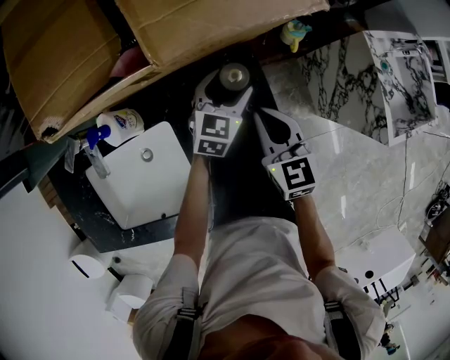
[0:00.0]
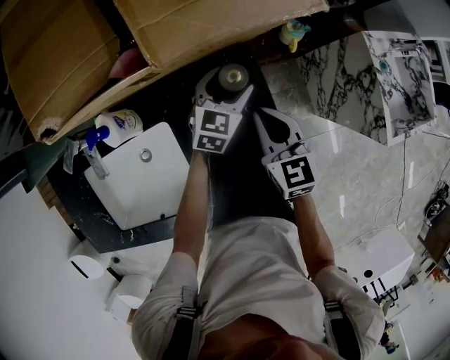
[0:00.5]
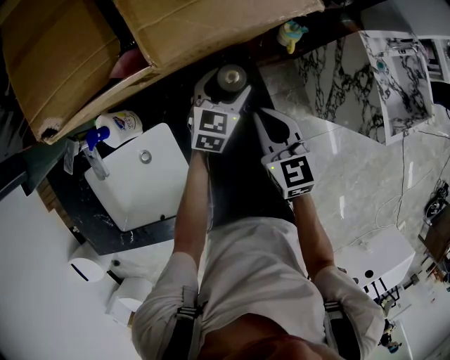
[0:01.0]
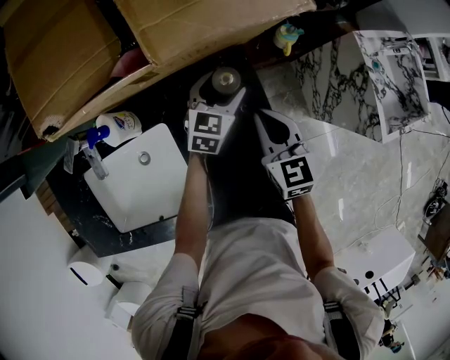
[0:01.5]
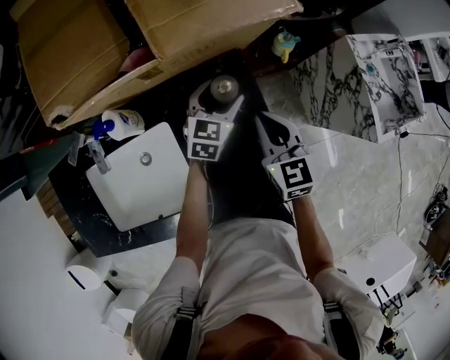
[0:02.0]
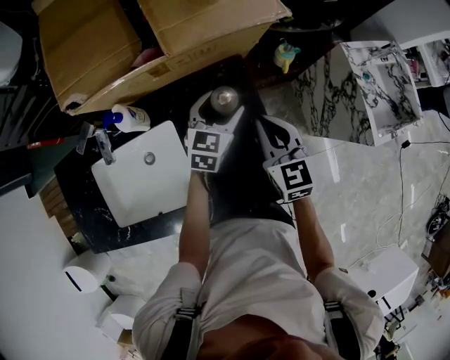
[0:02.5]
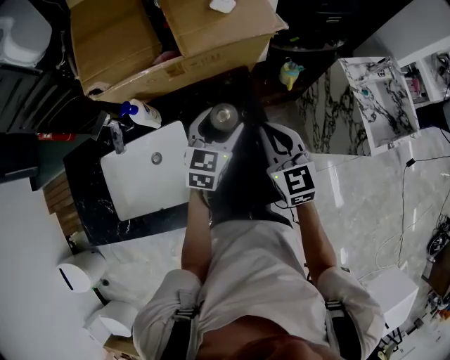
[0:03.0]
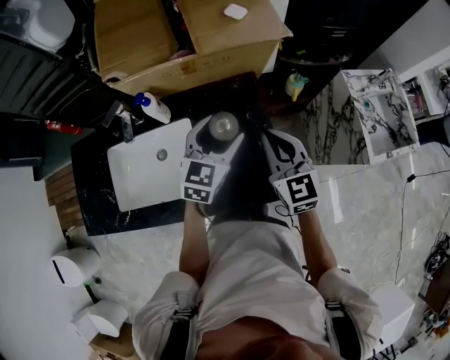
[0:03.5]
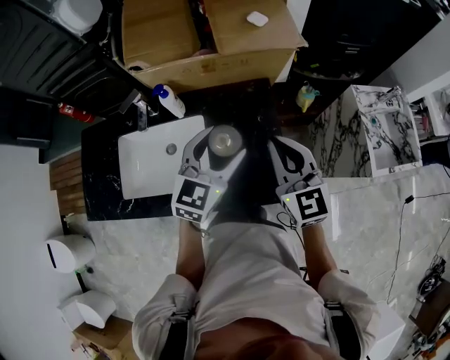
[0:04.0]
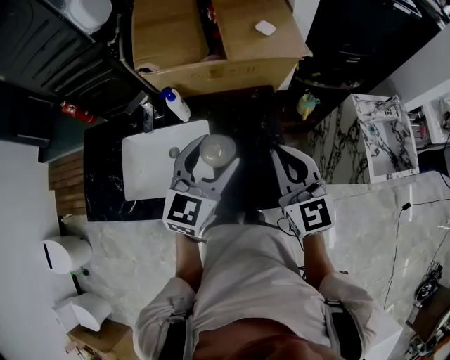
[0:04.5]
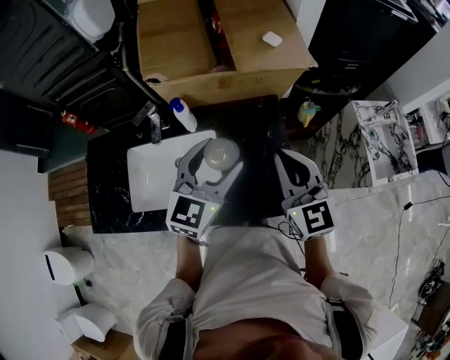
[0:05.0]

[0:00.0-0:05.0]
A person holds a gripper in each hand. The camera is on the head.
0.0 to 2.5 s: The right gripper heads upward, covering approximately 5 cm, while the left gripper shifts some 10 cm upward and backward.
2.5 to 5.0 s: The left gripper heads upward, backward and to the left, covering roughly 30 cm. Meanwhile the right gripper shifts some 20 cm upward and backward.

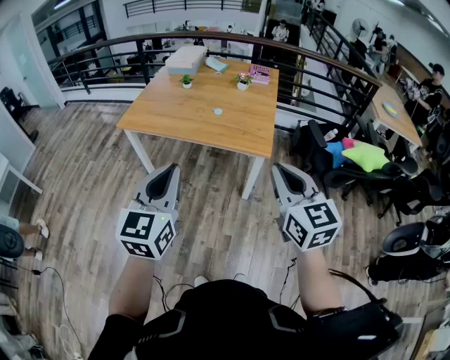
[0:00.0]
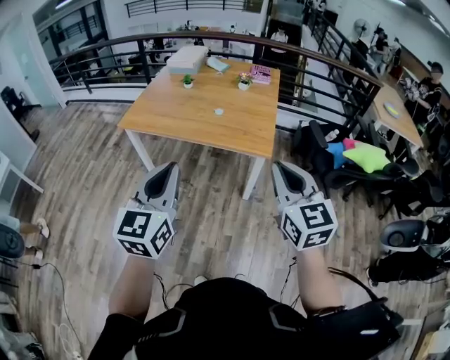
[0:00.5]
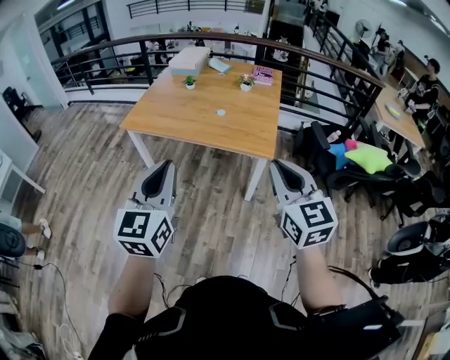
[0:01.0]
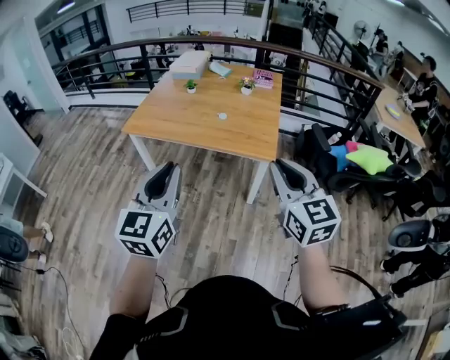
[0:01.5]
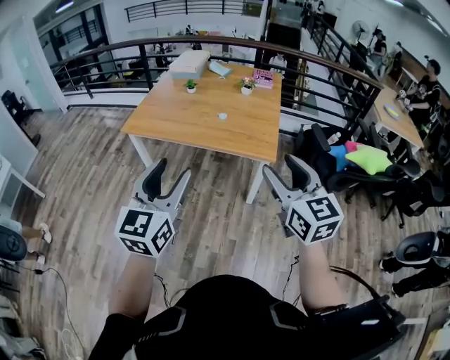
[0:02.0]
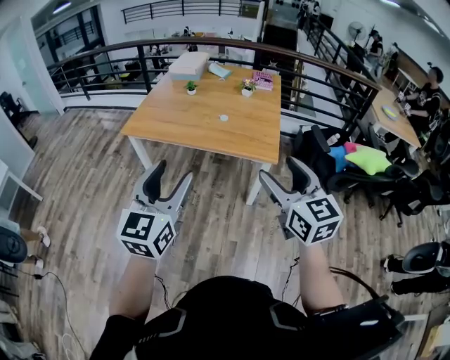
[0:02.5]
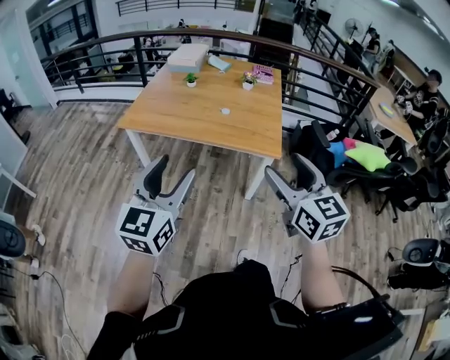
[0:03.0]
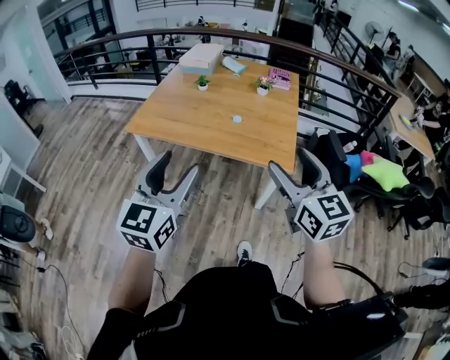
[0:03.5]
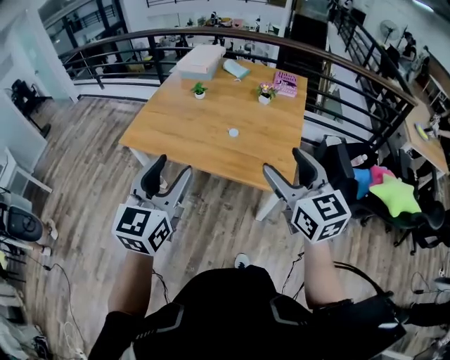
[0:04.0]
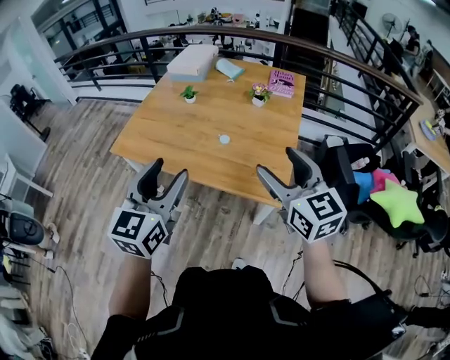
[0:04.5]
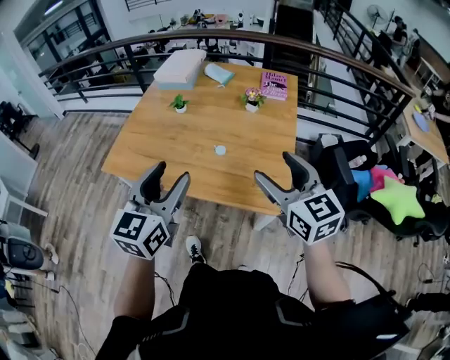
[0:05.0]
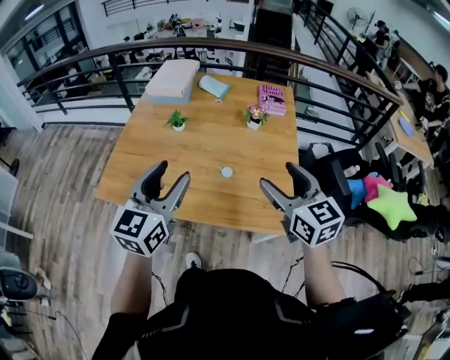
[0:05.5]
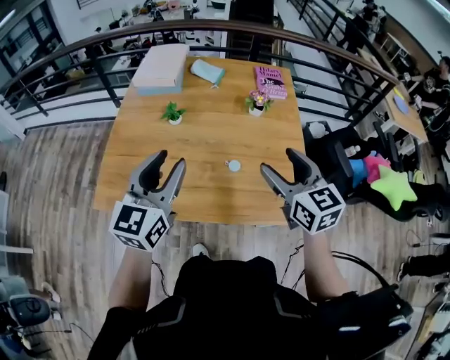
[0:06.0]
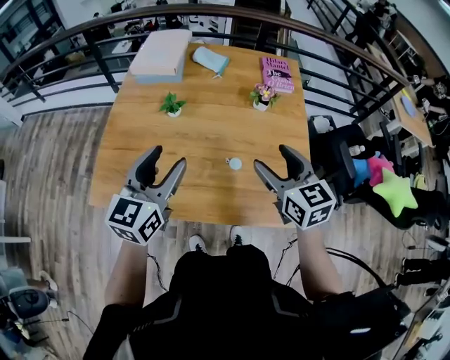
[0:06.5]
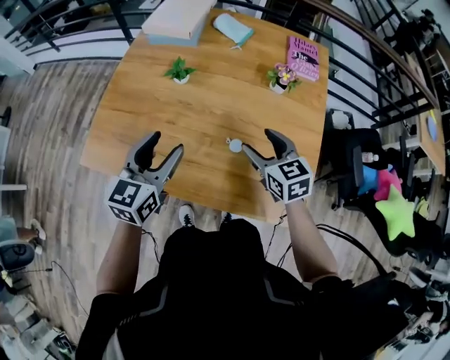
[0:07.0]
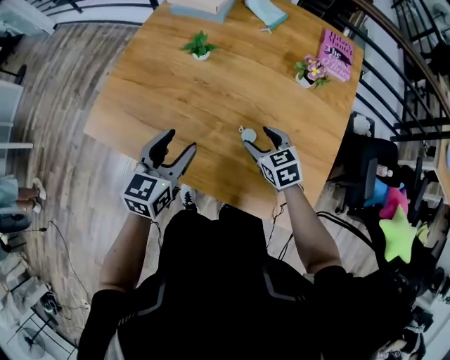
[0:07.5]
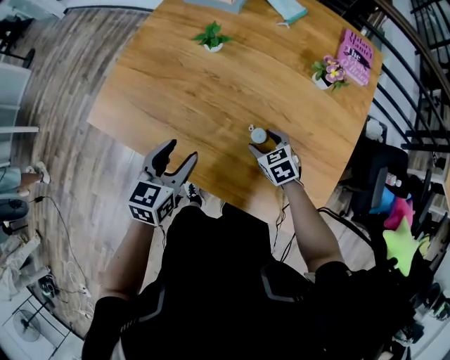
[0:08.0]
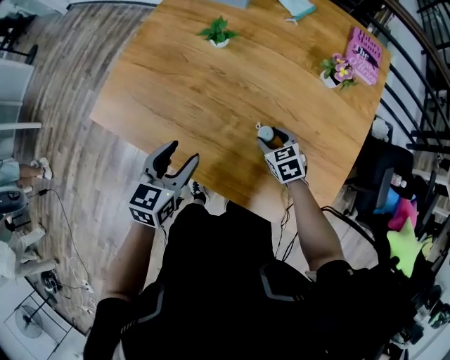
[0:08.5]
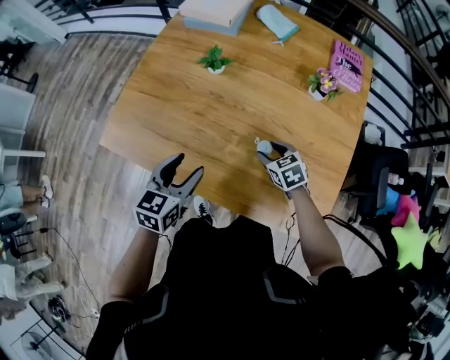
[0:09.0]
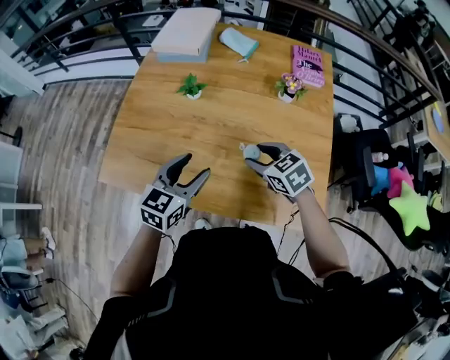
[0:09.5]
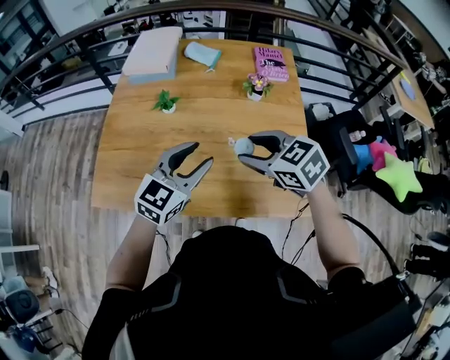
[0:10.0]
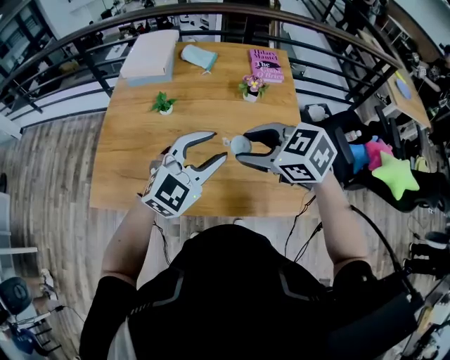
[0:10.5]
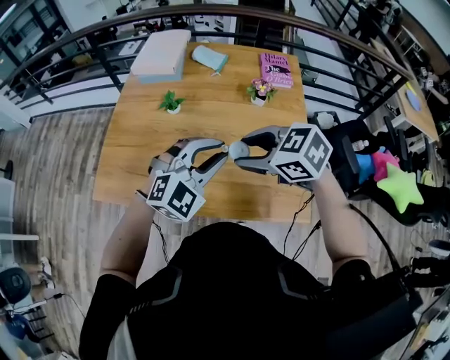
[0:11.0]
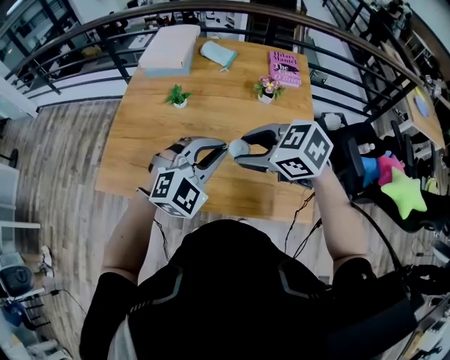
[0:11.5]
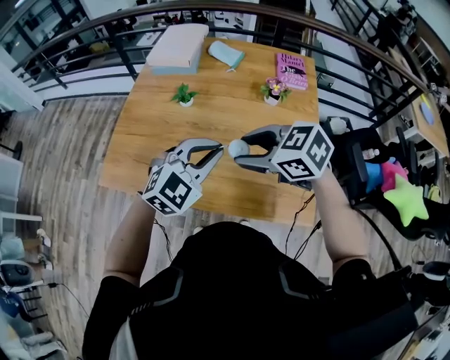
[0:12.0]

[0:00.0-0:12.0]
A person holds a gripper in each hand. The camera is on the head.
0.0 to 2.0 s: The right gripper opens its fingers. Meanwhile the left gripper opens its fingers.
2.0 to 4.0 s: Both grippers travel together forward, about 25 cm.
4.0 to 6.0 s: Both grippers travel together forward, approximately 30 cm.
6.0 to 8.0 s: The left gripper goes about 25 cm downward, and changes its angle by about 30 degrees. Meanwhile the right gripper shifts roughly 35 cm downward, and tilts its fingers approximately 40 degrees downward.
8.0 to 10.0 s: The right gripper goes approximately 30 cm upward. Meanwhile the left gripper goes about 15 cm upward and to the right, and changes its angle by approximately 50 degrees.
10.0 to 12.0 s: The left gripper changes its angle by some 30 degrees, and closes up, while the right gripper changes place by approximately 5 cm.

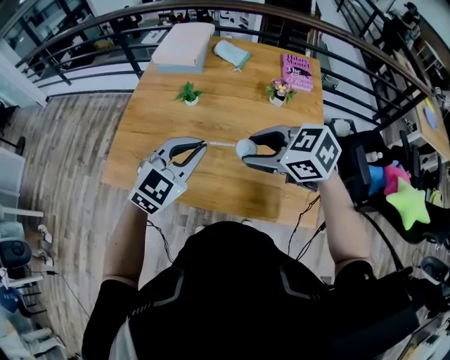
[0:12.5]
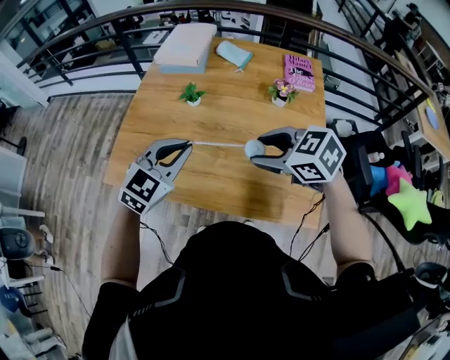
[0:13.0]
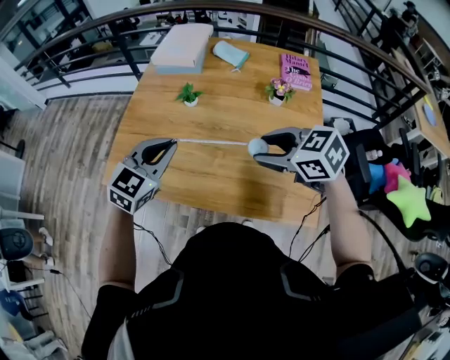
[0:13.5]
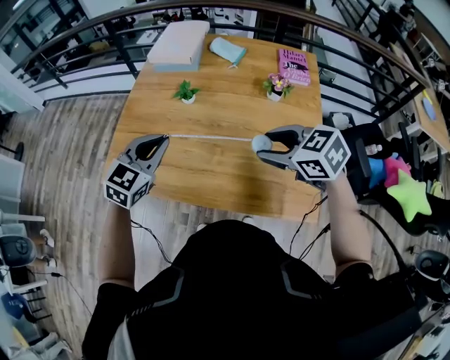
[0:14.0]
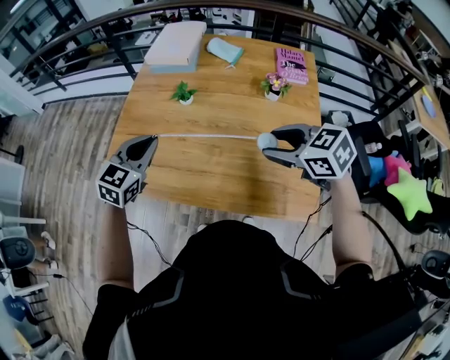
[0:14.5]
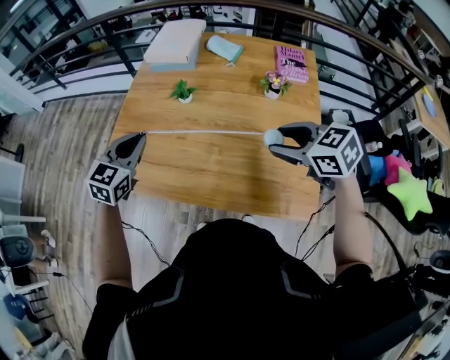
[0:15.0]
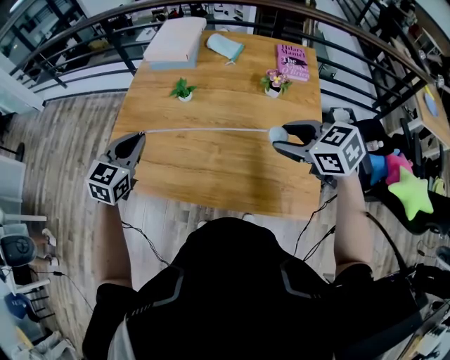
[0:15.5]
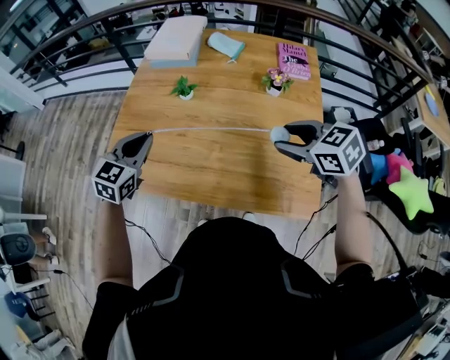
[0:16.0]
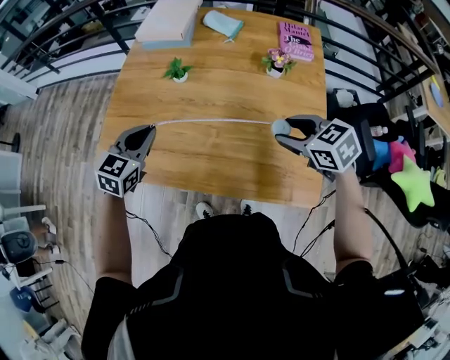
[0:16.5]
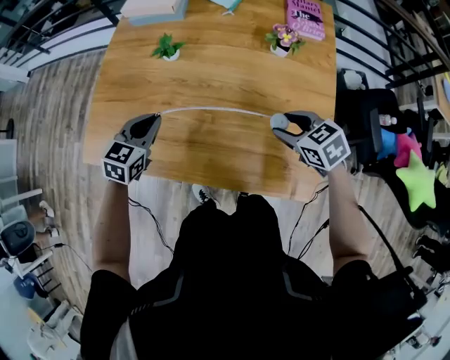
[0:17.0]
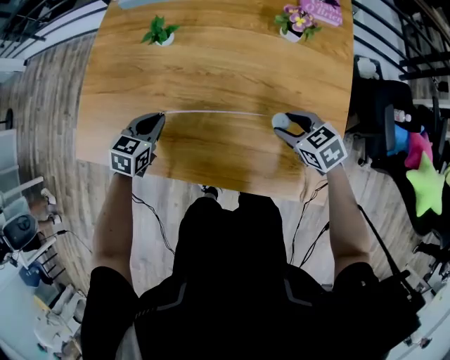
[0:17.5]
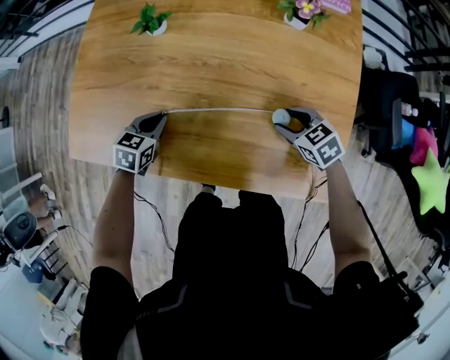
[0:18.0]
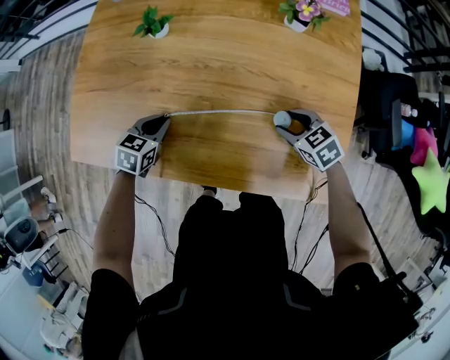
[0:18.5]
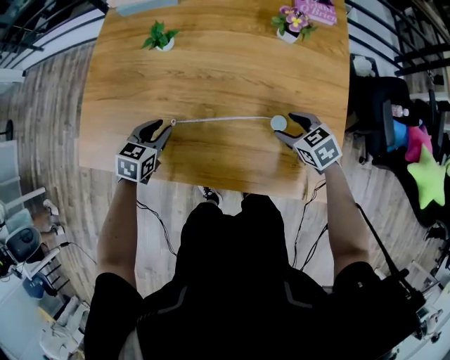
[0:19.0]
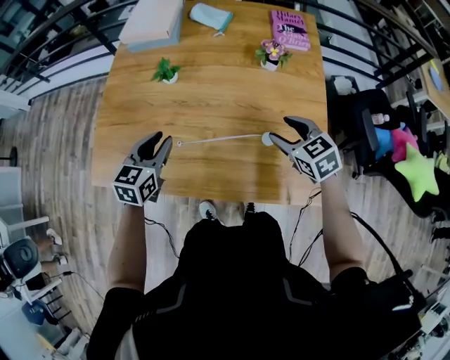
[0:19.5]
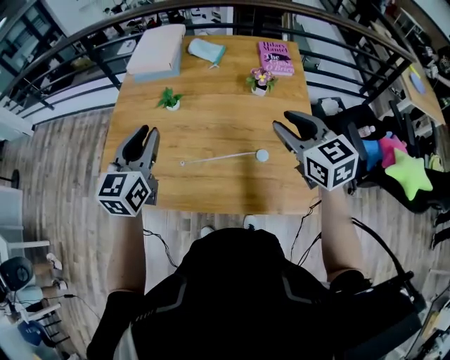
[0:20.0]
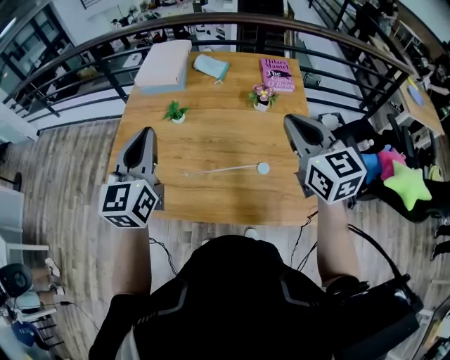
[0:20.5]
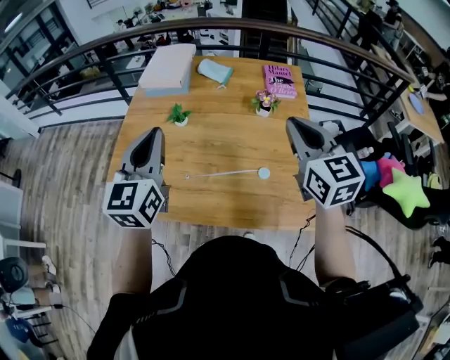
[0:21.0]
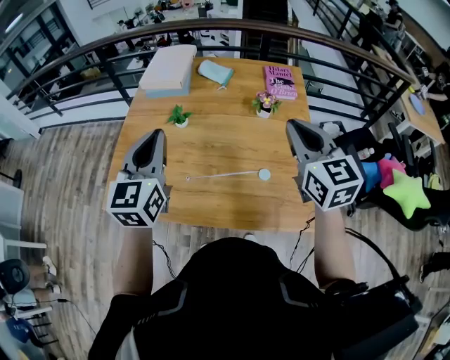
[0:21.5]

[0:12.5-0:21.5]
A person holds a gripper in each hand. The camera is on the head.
12.5 to 14.5 s: The left gripper is displaced to the left and forward by approximately 15 cm. Meanwhile the right gripper goes approximately 5 cm to the right.
14.5 to 17.0 s: The left gripper heads downward, covering some 15 cm, while the right gripper travels downward and to the right by about 20 cm.
17.0 to 19.5 s: The right gripper goes downward and returns, roughly 15 cm each way; the left gripper goes downward and returns, about 15 cm each way, and opens up.
19.5 to 21.5 s: The two grippers go about 25 cm upward. The right gripper tips its fingers upward by roughly 30 degrees, and closes up; the left gripper changes its angle by some 30 degrees, and closes its fingers.

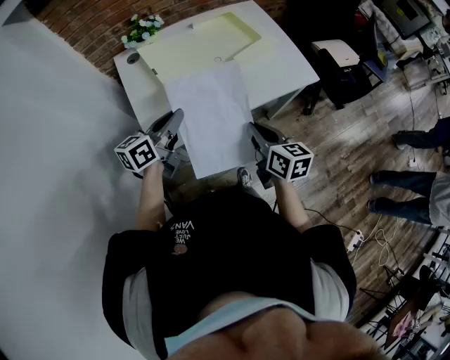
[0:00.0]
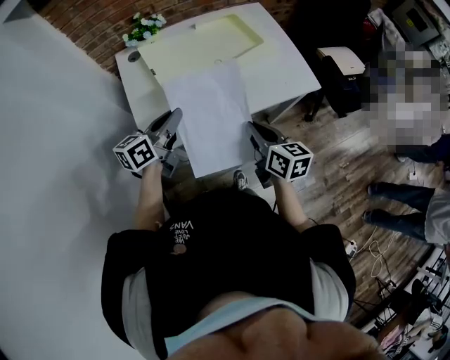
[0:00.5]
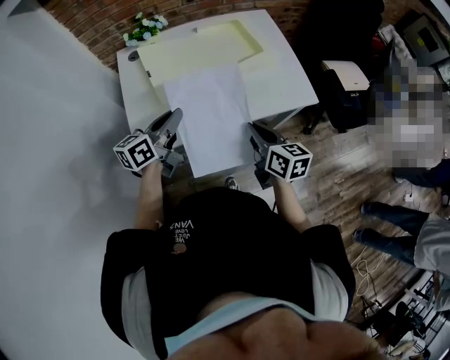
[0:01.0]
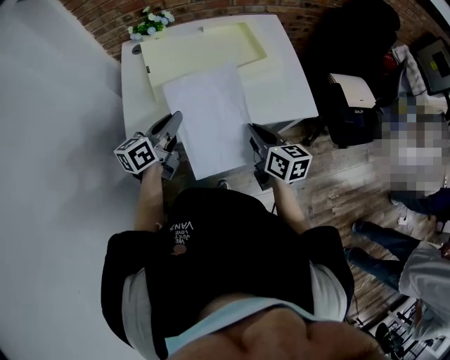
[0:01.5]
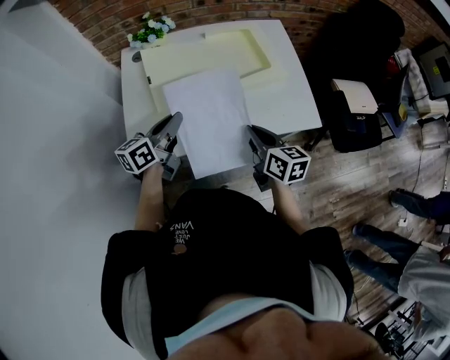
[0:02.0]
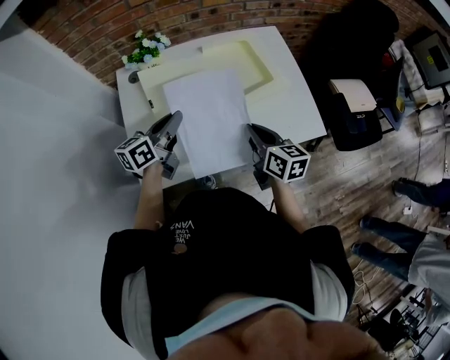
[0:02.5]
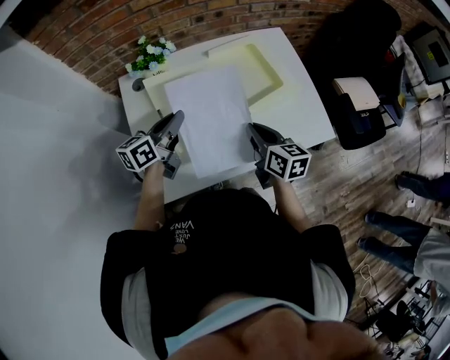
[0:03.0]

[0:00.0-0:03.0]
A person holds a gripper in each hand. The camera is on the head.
0.0 to 1.5 s: The right gripper is displaced to the right and forward by approximately 10 cm. Meanwhile the left gripper goes approximately 10 cm to the right.
1.5 to 3.0 s: The two grippers go approximately 15 cm forward and to the left.
